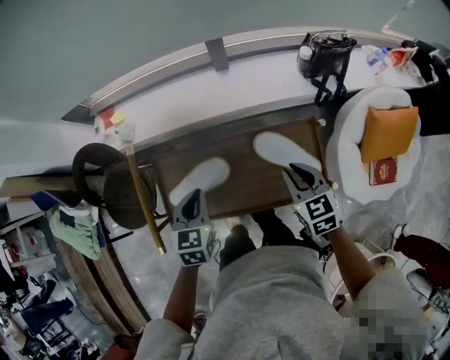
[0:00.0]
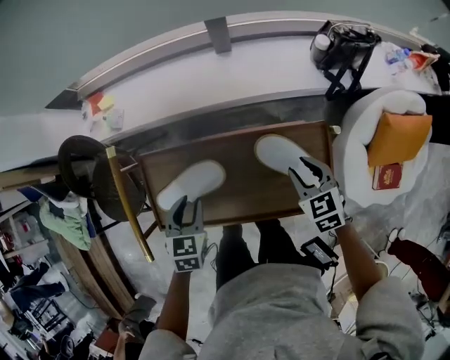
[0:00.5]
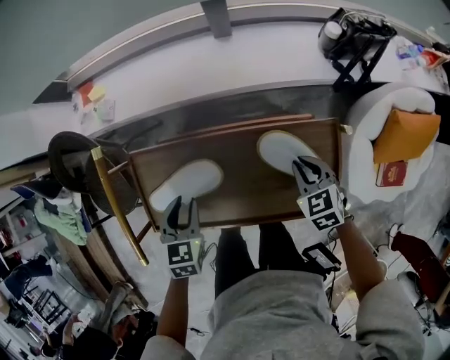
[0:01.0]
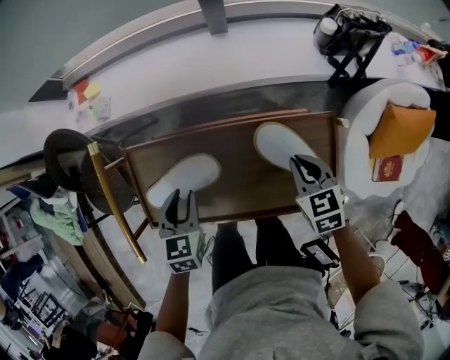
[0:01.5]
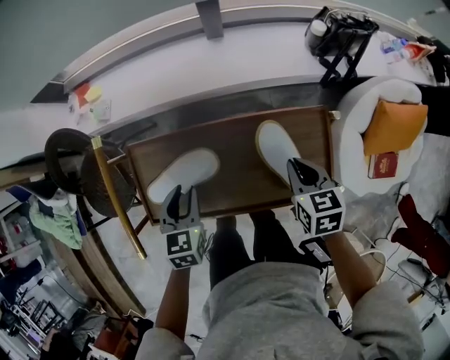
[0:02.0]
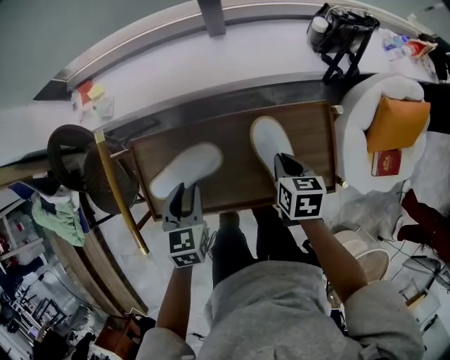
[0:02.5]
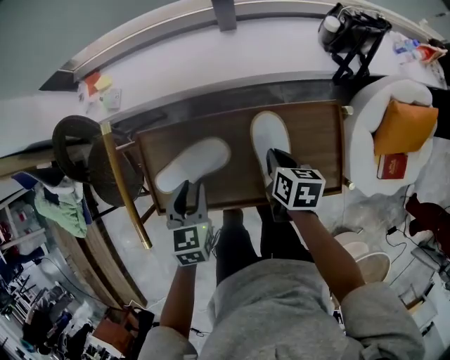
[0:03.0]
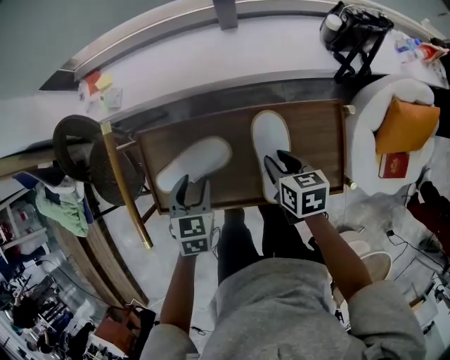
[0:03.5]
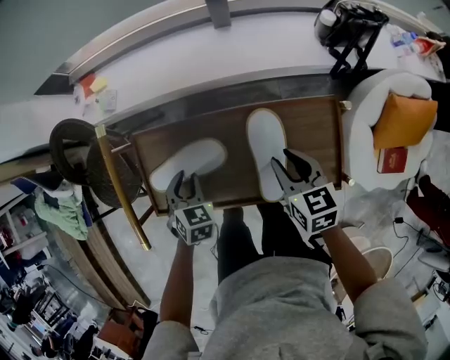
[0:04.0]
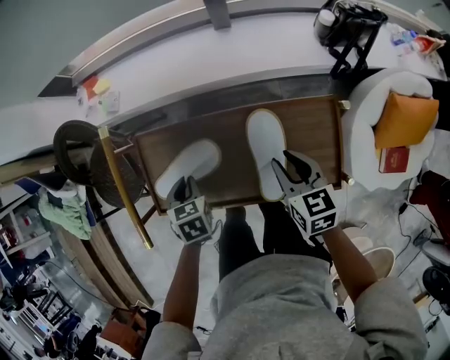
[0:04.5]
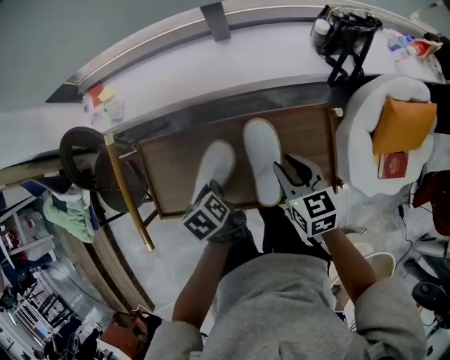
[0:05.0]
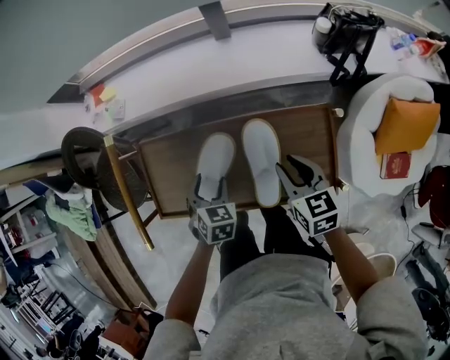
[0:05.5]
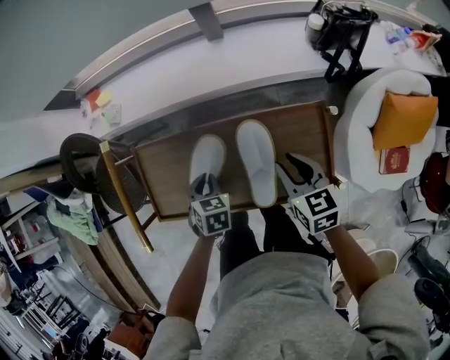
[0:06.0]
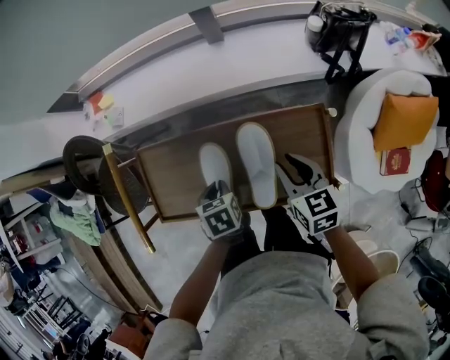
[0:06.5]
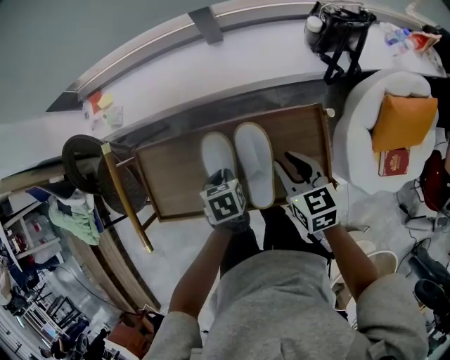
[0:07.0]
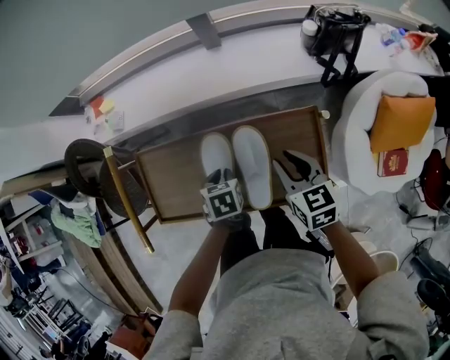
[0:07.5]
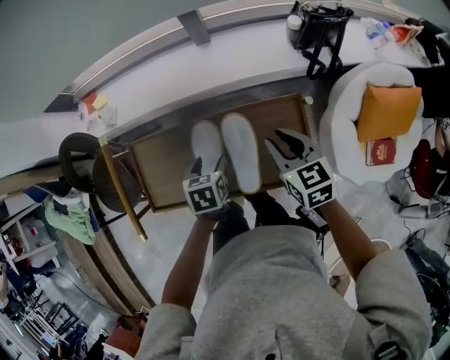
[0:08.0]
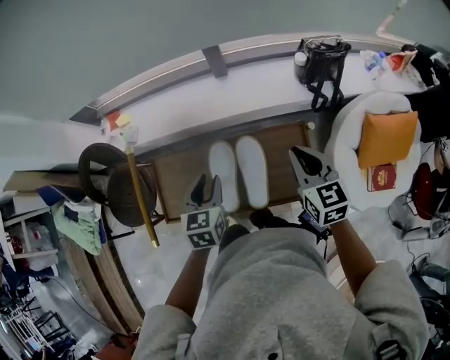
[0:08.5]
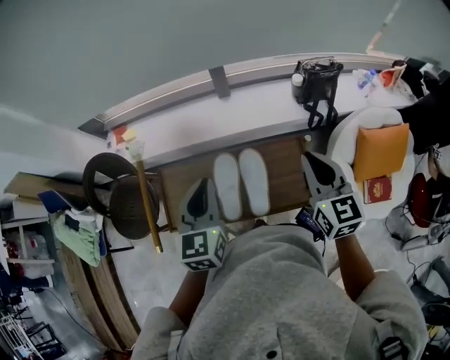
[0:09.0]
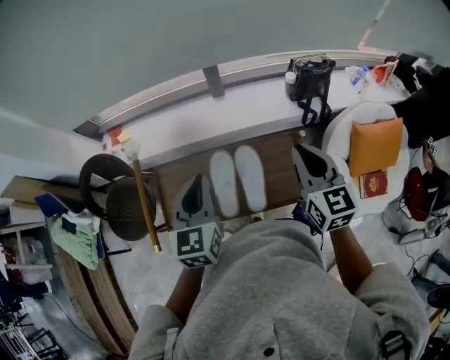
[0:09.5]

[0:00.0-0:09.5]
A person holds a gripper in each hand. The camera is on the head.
0:00.0 to 0:02.0: The two grippers go roughly 10 cm downward. The right gripper opens and closes again. The left gripper opens.
0:02.0 to 0:04.0: The right gripper goes approximately 5 cm to the left, and opens up. The left gripper heads downward, covering approximately 5 cm, and rotates about 20 degrees.
0:04.0 to 0:05.5: The left gripper moves to the right, some 5 cm, and opens up.
0:05.5 to 0:07.5: The left gripper is displaced to the right by some 5 cm, turns by roughly 30 degrees, and closes its fingers.
0:07.5 to 0:09.5: Both grippers move upward, about 30 cm. The left gripper tips its fingers upward by approximately 50 degrees, and opens, then closes again; the right gripper swivels approximately 30 degrees, and closes its fingers.

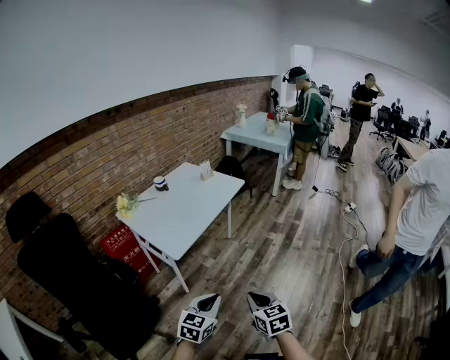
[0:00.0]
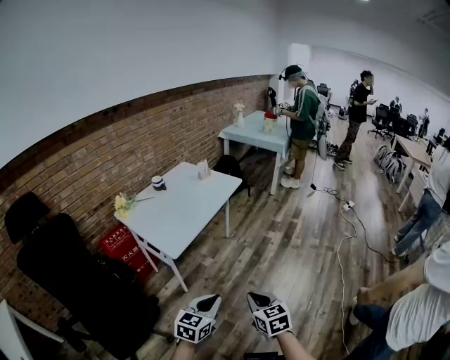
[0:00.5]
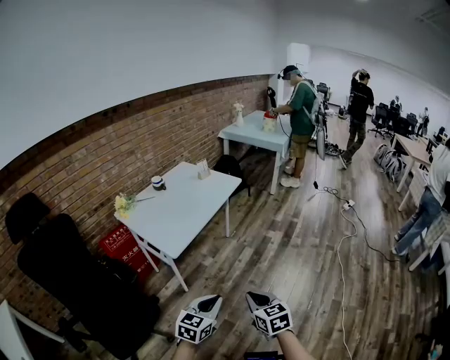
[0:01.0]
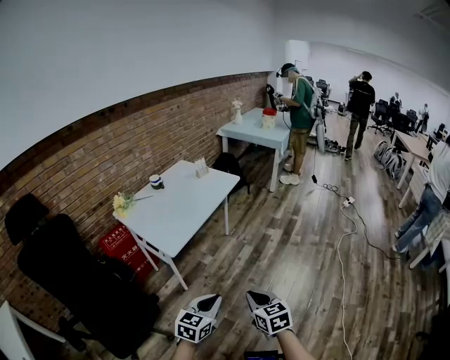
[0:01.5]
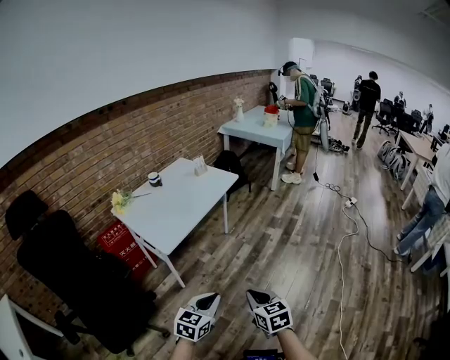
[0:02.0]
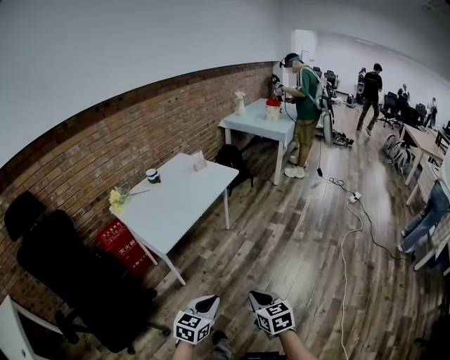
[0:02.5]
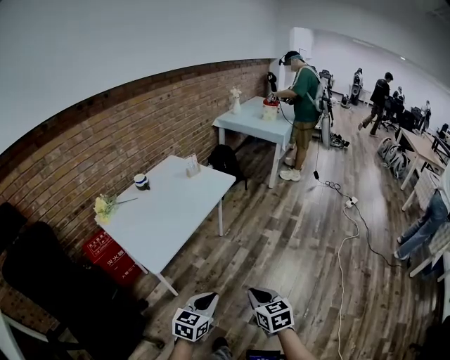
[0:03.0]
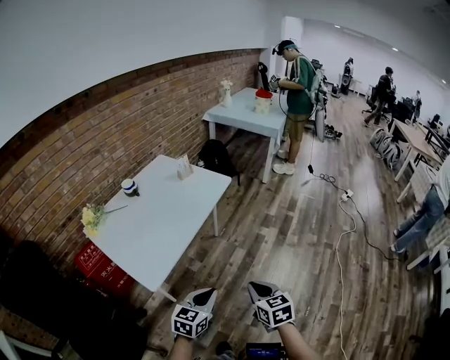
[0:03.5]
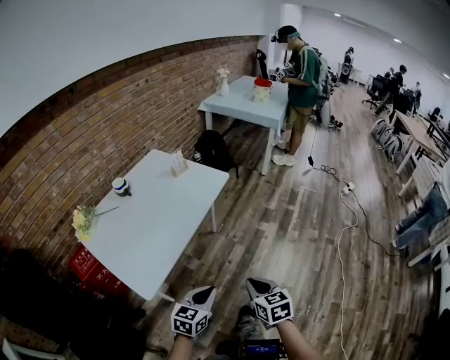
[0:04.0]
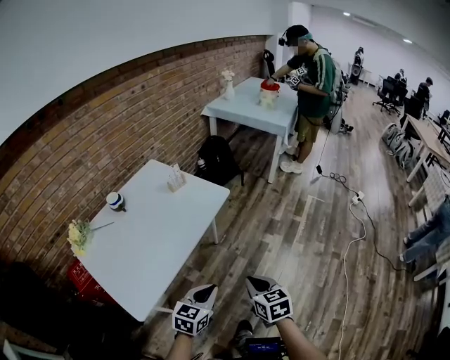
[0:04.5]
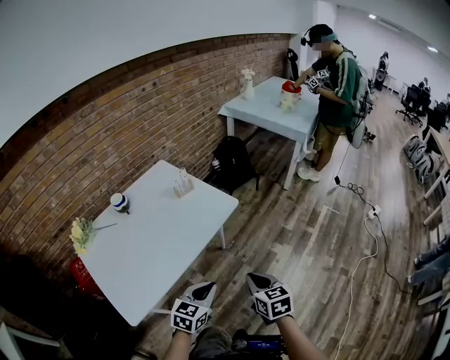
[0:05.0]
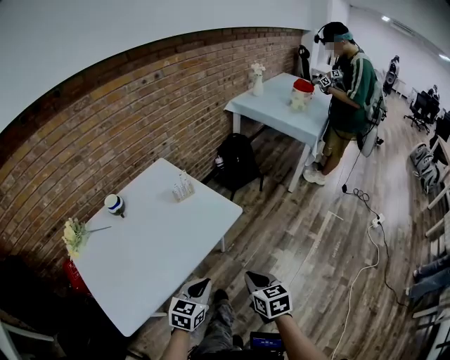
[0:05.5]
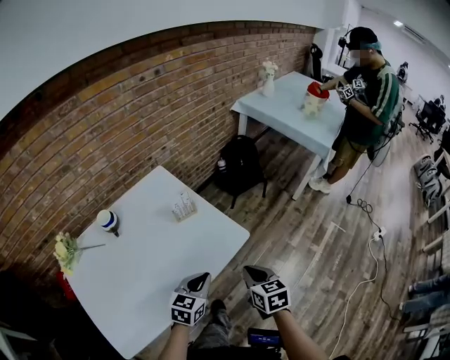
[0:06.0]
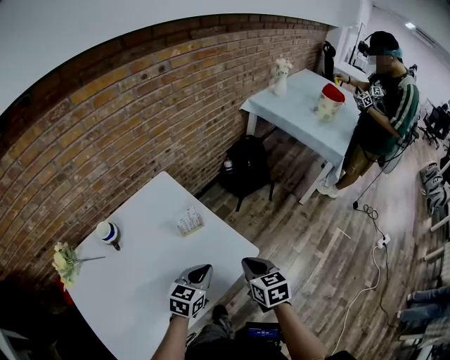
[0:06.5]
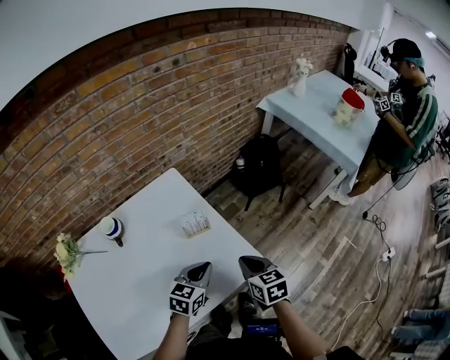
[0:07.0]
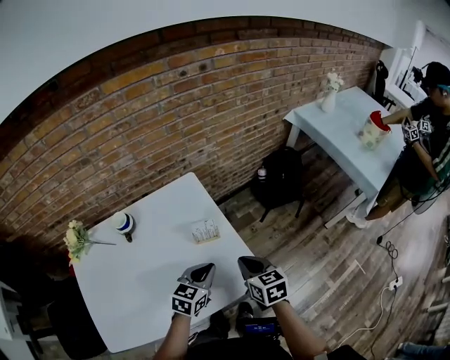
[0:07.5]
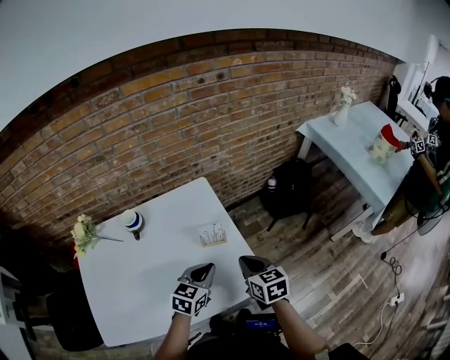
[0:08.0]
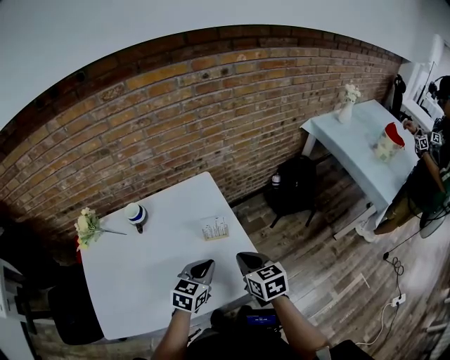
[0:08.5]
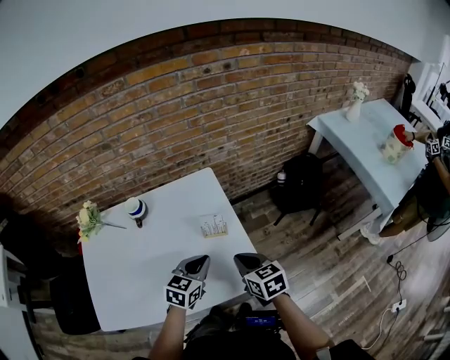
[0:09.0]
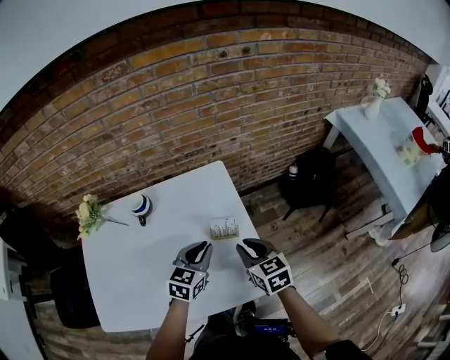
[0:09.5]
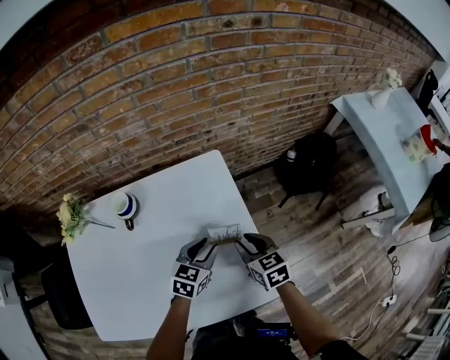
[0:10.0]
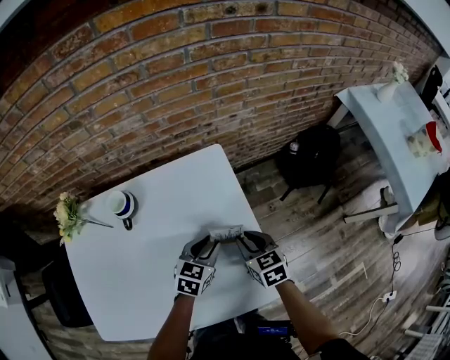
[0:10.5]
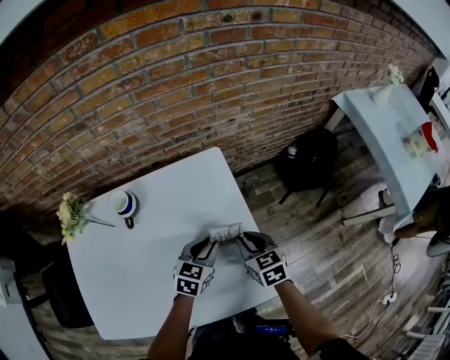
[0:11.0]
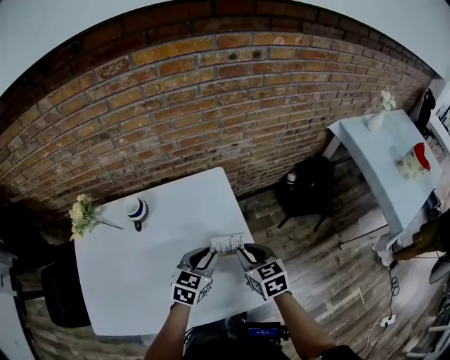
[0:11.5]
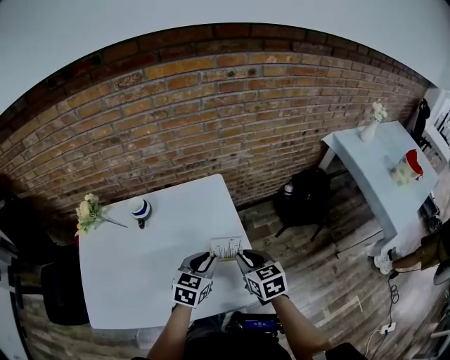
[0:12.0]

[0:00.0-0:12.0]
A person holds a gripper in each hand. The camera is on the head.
0:00.0 to 0:02.0: The two grippers go some 5 cm to the right.
0:02.0 to 0:04.0: Both grippers travel together forward, some 30 cm.
0:04.0 to 0:06.0: The two grippers travel together, forward, roughly 50 cm.
0:06.0 to 0:08.0: The two grippers go approximately 20 cm forward. The right gripper turns by about 30 degrees.
0:08.0 to 0:10.0: The two grippers go roughly 15 cm forward and downward. The left gripper opens up. Meanwhile the right gripper opens.
0:10.0 to 0:12.0: Both grippers move upward and backward, approximately 10 cm.

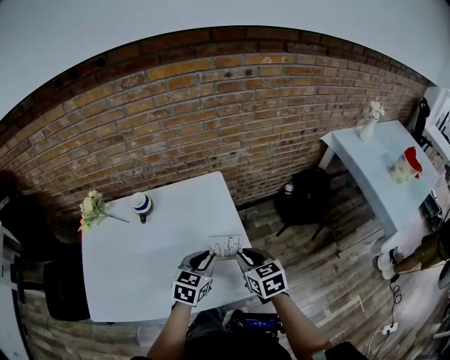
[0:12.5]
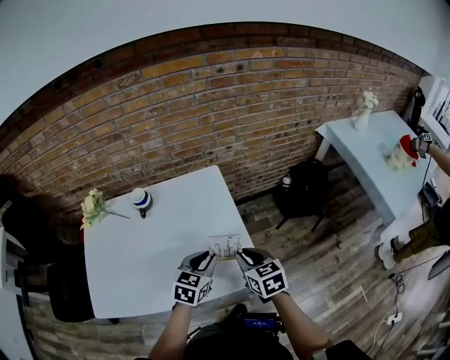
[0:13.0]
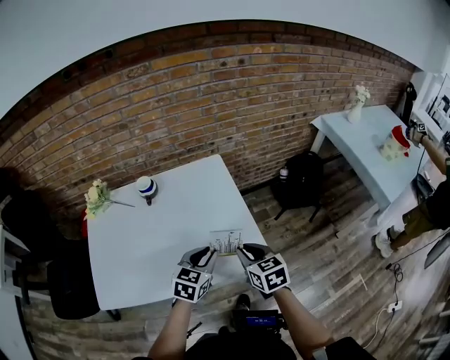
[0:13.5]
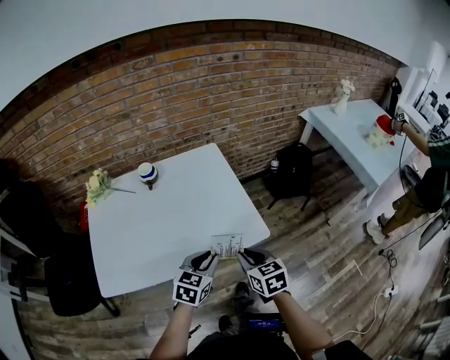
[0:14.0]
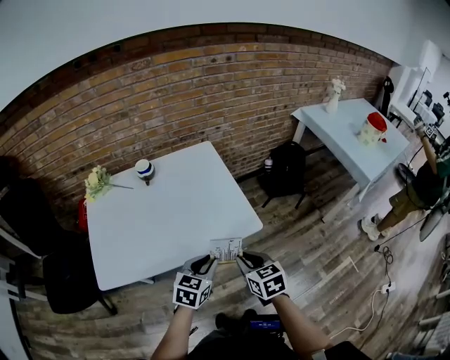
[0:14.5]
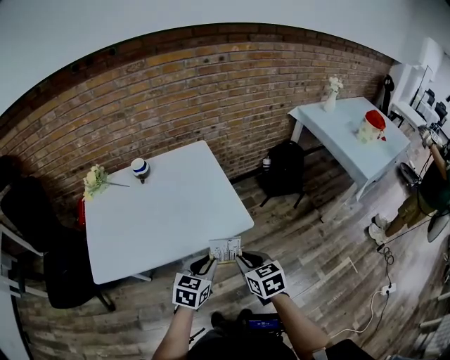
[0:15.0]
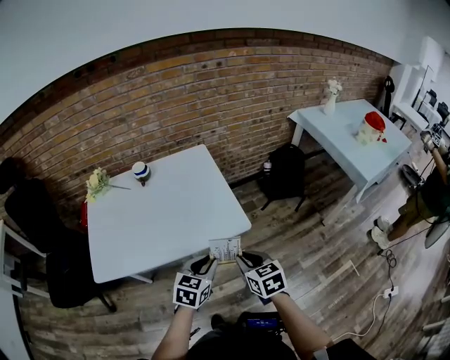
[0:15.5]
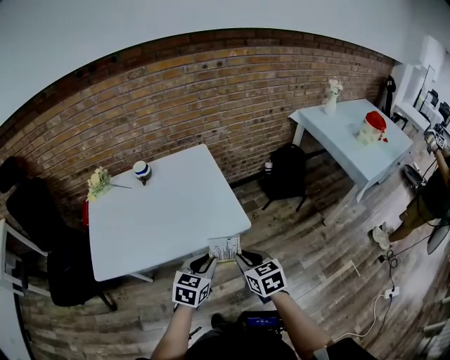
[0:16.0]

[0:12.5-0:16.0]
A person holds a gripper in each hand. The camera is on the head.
0:12.5 to 0:14.5: Both grippers travel together backward, about 25 cm.
0:14.5 to 0:16.0: The two grippers go some 5 cm to the right.

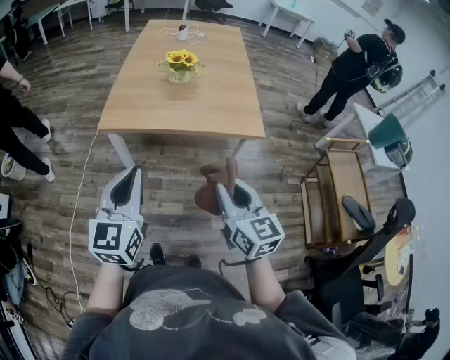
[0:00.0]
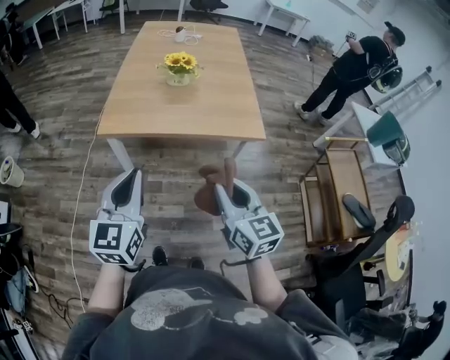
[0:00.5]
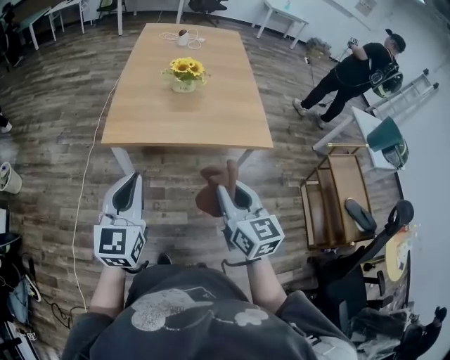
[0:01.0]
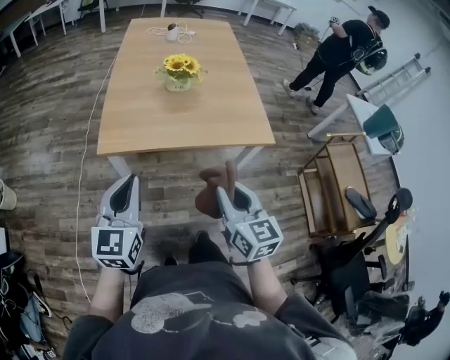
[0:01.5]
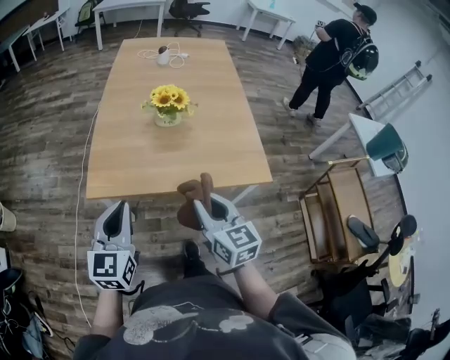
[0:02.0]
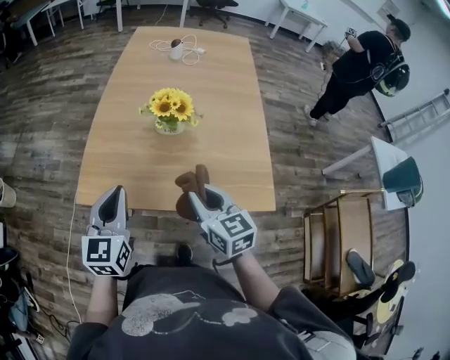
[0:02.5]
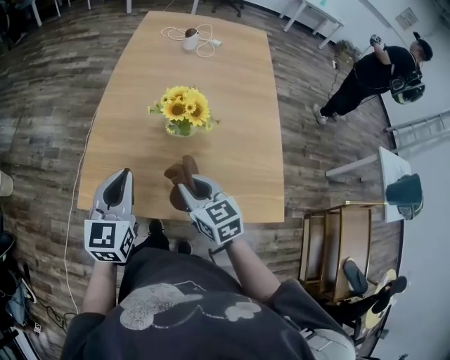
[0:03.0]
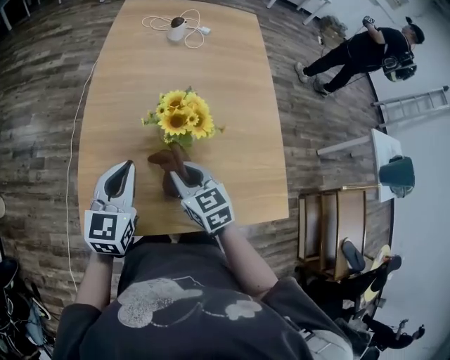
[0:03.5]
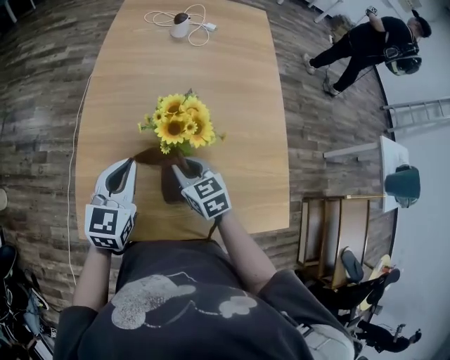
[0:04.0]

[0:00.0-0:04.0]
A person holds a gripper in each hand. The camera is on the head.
0:00.0 to 0:02.0: Both grippers travel together forward, roughly 20 cm.
0:02.0 to 0:04.0: The left gripper moves forward, roughly 30 cm. Meanwhile the right gripper goes some 35 cm forward and downward, and changes its angle by some 30 degrees.
